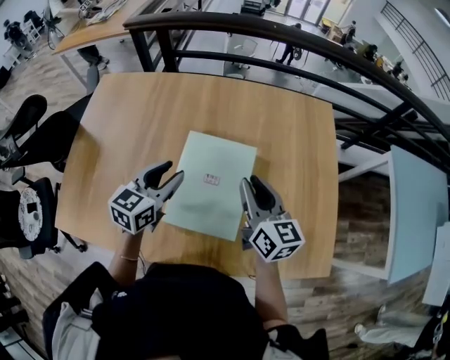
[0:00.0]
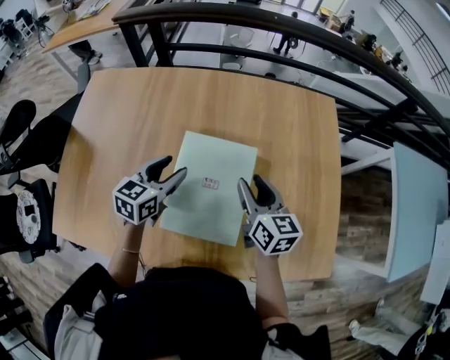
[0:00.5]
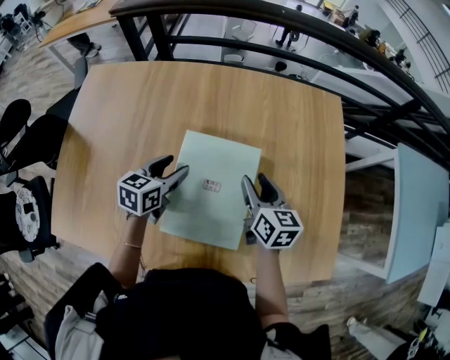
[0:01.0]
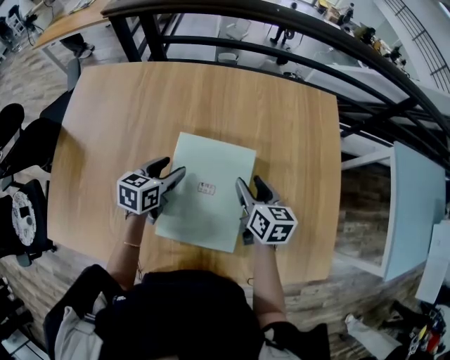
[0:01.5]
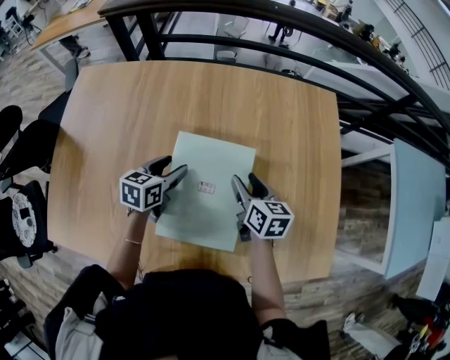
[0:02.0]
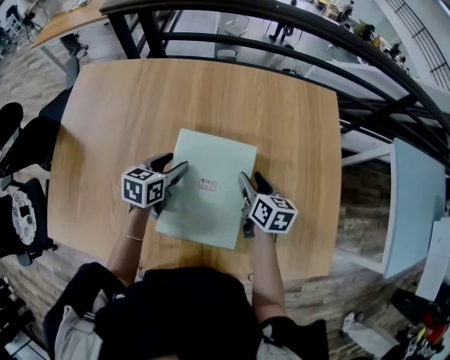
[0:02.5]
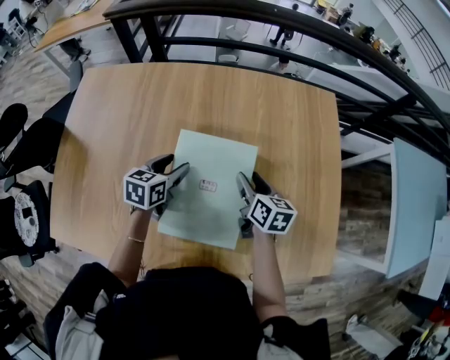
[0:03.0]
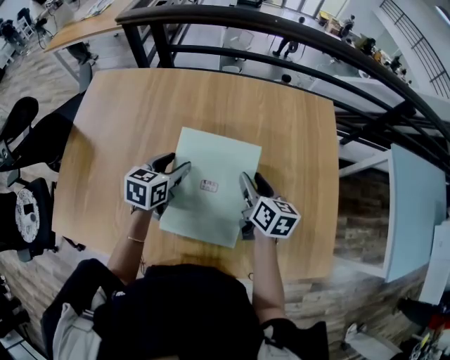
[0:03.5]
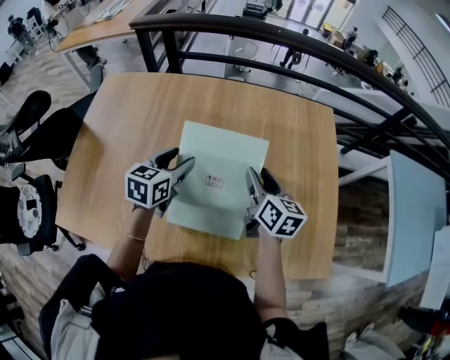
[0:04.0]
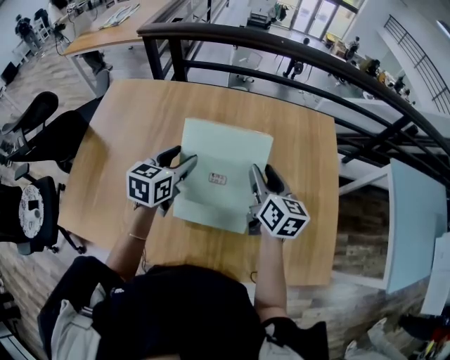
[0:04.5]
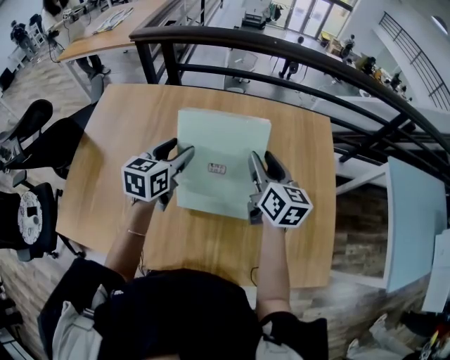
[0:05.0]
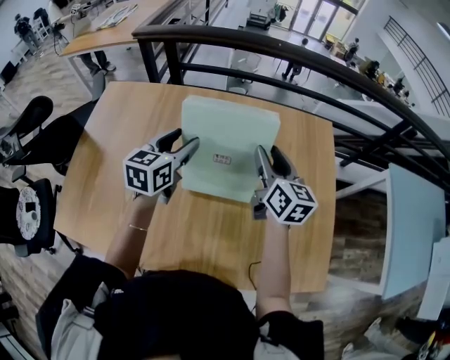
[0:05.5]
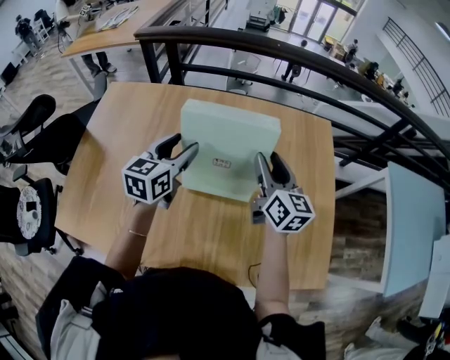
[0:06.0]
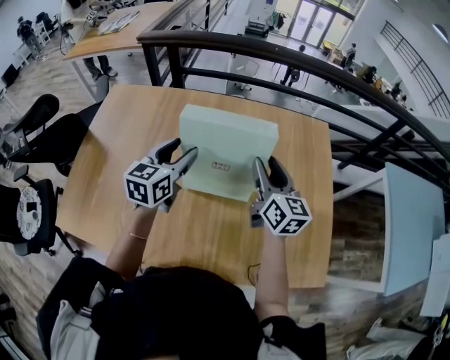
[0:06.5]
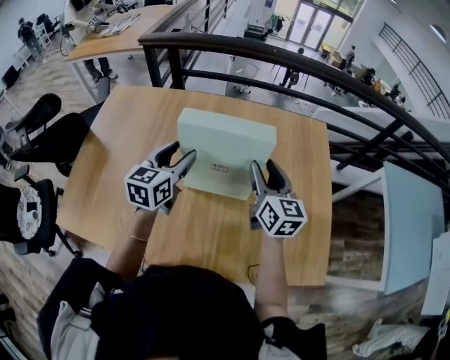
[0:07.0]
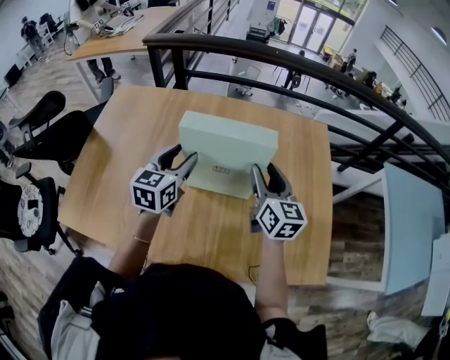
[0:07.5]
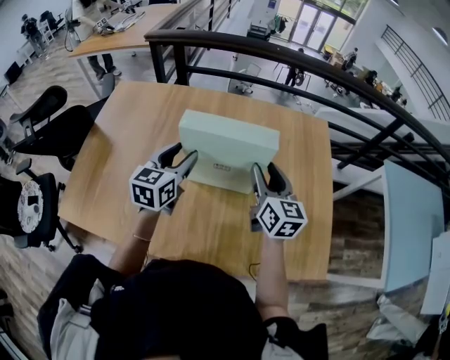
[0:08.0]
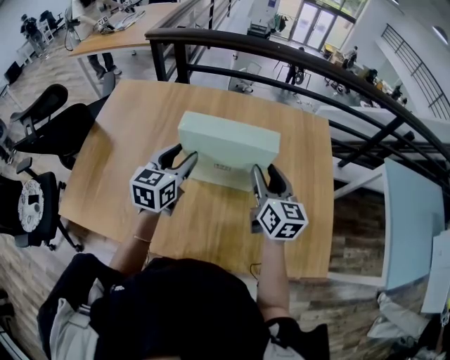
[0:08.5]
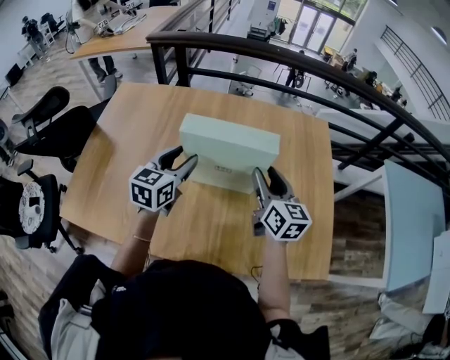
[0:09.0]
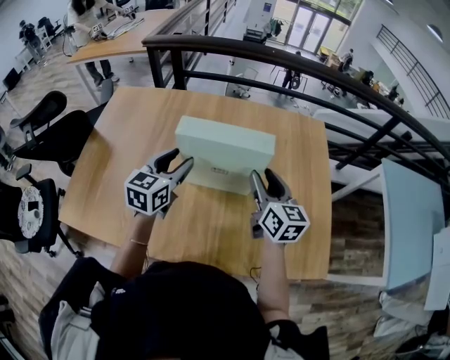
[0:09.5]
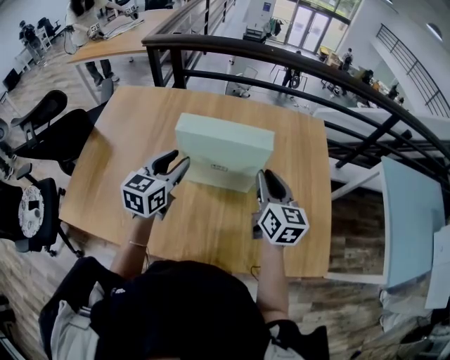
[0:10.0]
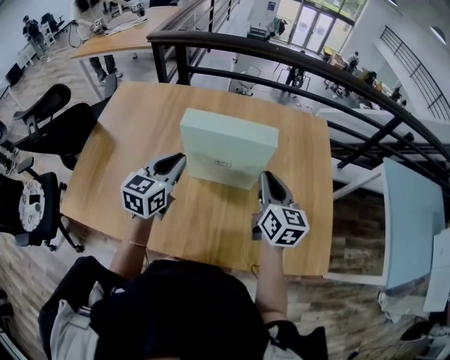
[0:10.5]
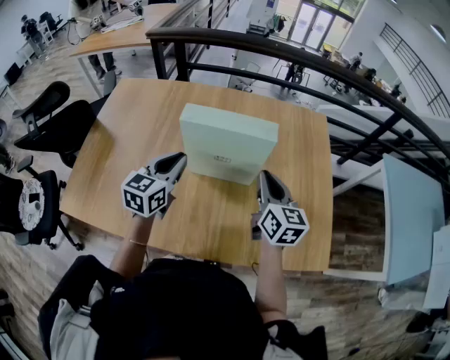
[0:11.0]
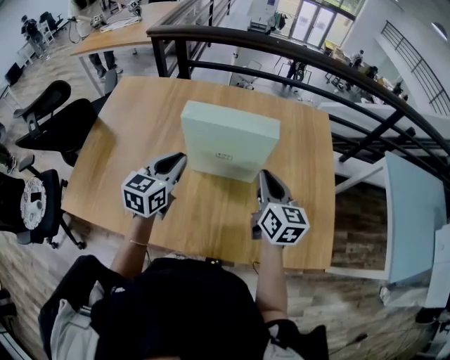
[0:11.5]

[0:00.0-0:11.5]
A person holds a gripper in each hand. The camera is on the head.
0:00.0 to 0:02.0: The grippers both shift downward and forward by roughly 15 cm. The right gripper changes its angle by approximately 20 degrees, and opens its fingers.
0:02.0 to 0:04.0: The two grippers go some 10 cm upward.
0:04.0 to 0:06.0: The two grippers go some 10 cm upward.
0:06.0 to 0:07.5: Both grippers travel together backward, approximately 5 cm.
0:07.5 to 0:09.5: The grippers stay close to where they were, moving slightly.
0:09.5 to 0:11.5: The left gripper closes. The right gripper closes up.

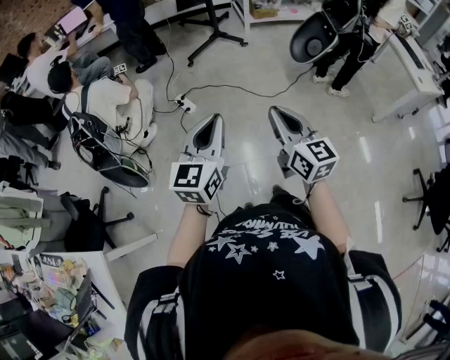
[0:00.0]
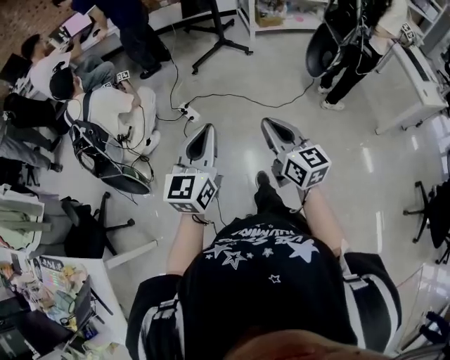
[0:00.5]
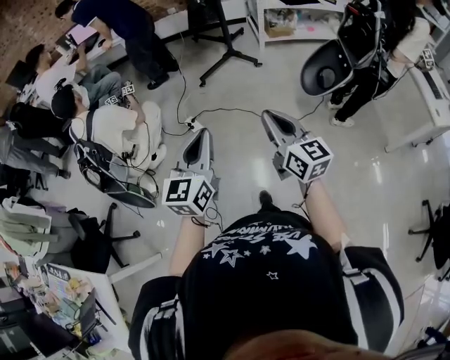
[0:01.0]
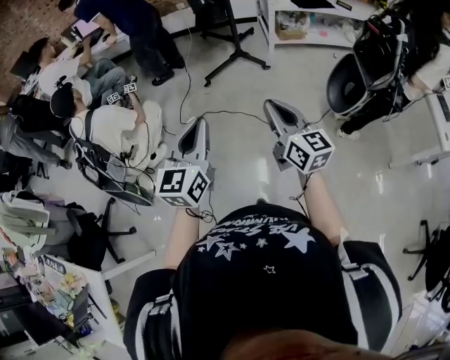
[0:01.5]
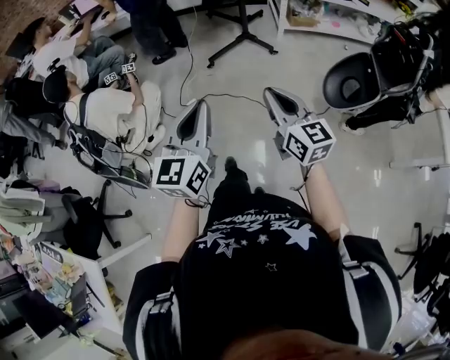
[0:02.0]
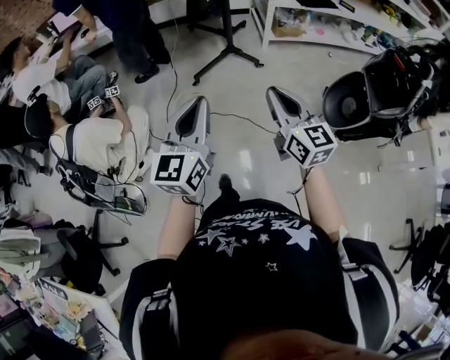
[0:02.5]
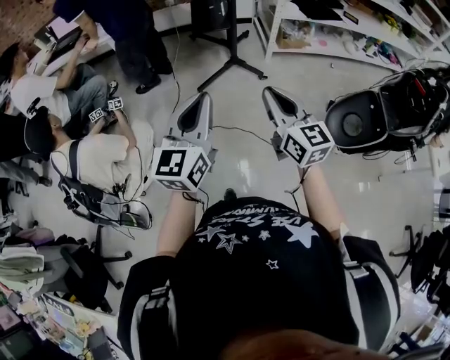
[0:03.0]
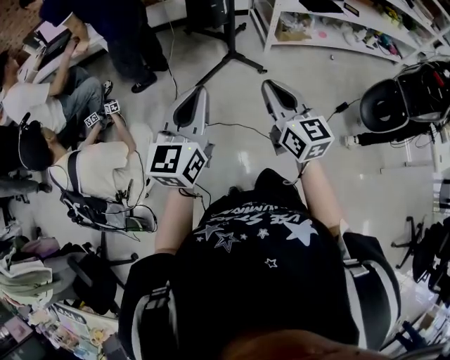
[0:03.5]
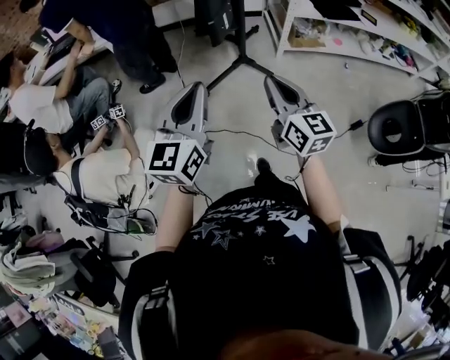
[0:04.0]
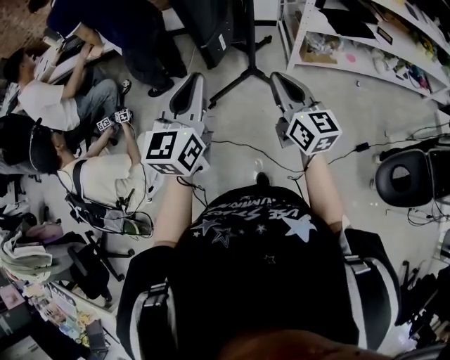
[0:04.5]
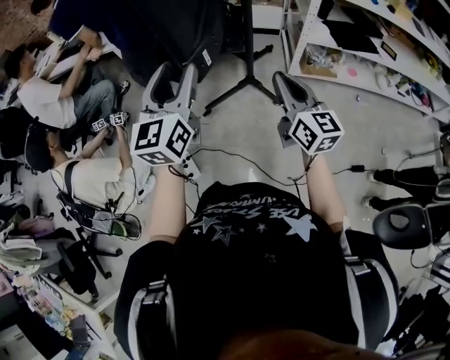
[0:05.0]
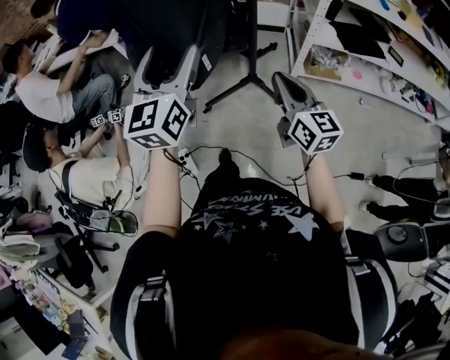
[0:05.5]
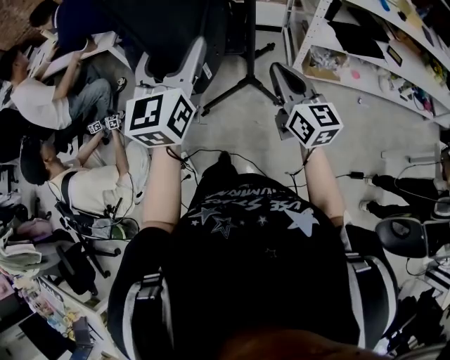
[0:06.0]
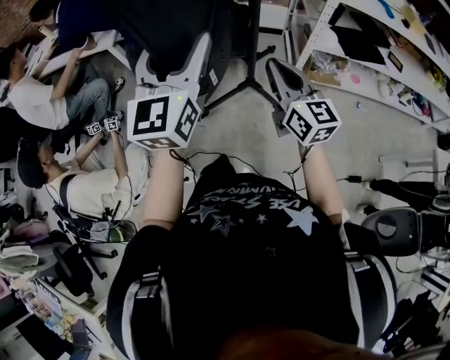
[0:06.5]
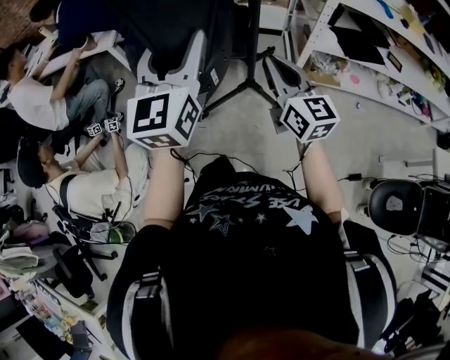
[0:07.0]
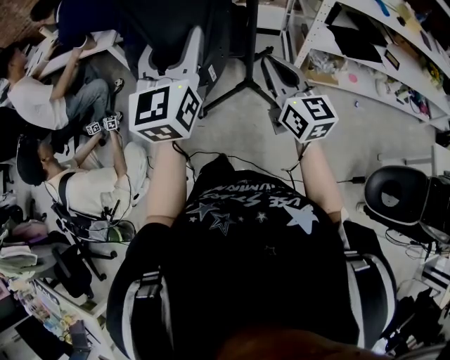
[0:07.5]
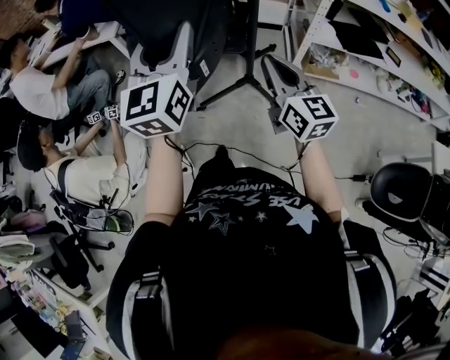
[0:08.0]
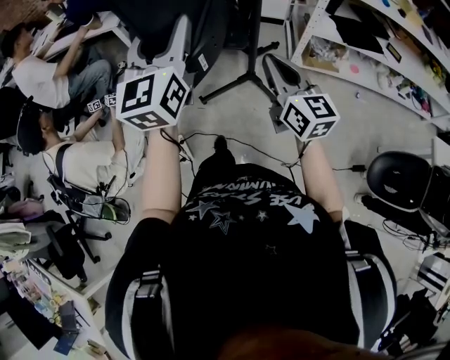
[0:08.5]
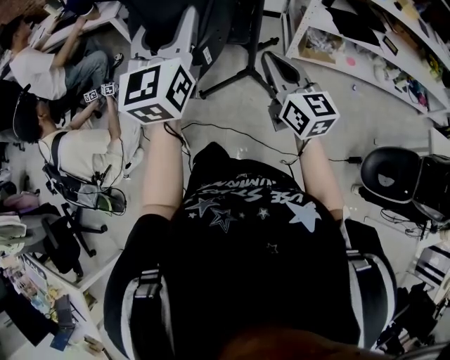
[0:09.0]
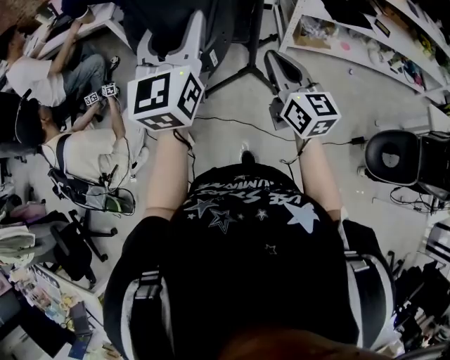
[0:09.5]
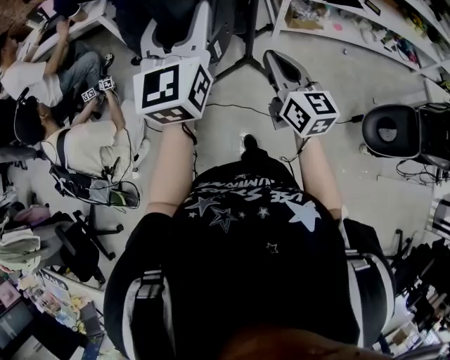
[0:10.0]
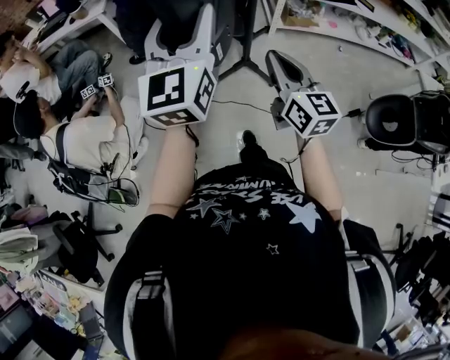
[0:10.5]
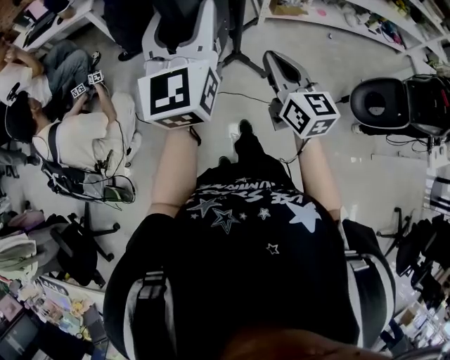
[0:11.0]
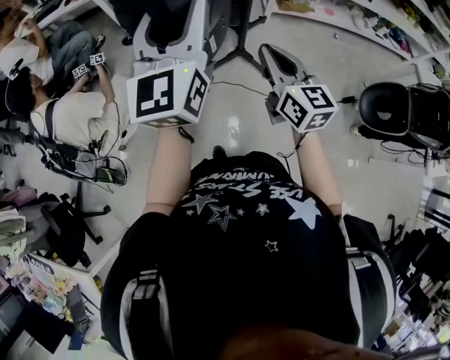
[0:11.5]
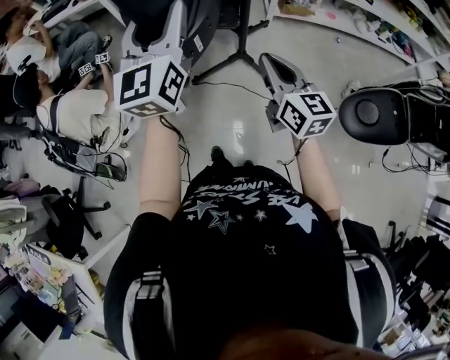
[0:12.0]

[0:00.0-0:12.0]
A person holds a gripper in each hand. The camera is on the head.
0:00.0 to 0:02.0: Both grippers move forward, some 30 cm.
0:02.0 to 0:04.0: Both grippers travel together forward, some 35 cm.
0:04.0 to 0:06.0: The left gripper heads forward, covering approximately 20 cm, and opens. The right gripper moves forward and to the right, some 20 cm.
0:06.0 to 0:08.0: There are only small adjustments of the grippers.
0:08.0 to 0:10.0: Both grippers travel together backward, roughly 20 cm.
0:10.0 to 0:12.0: Both grippers move backward, roughly 15 cm.

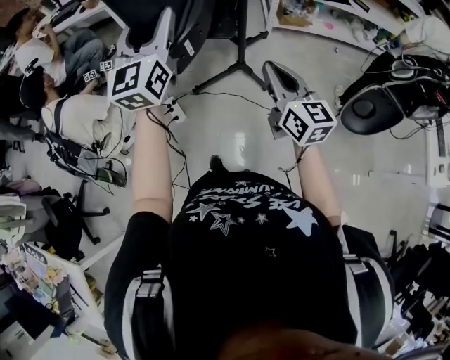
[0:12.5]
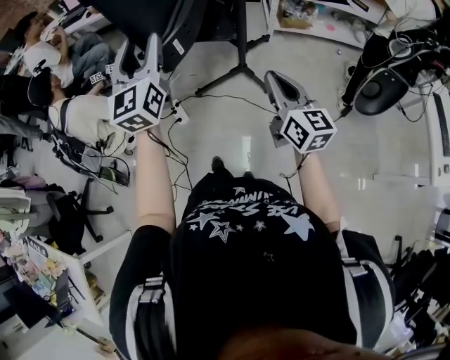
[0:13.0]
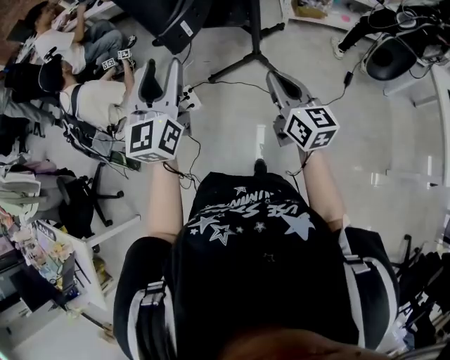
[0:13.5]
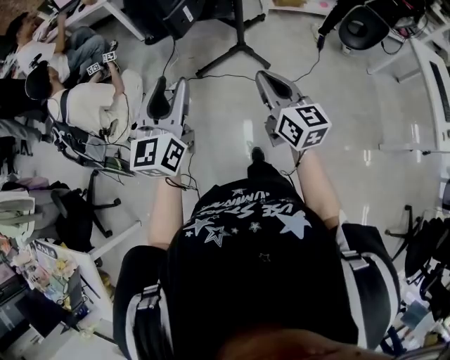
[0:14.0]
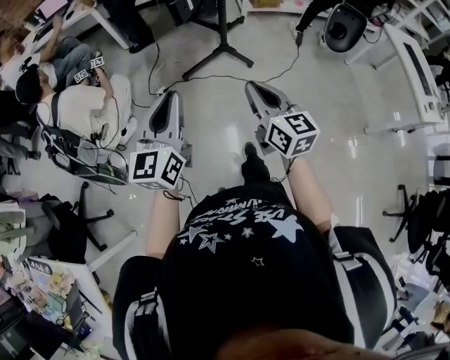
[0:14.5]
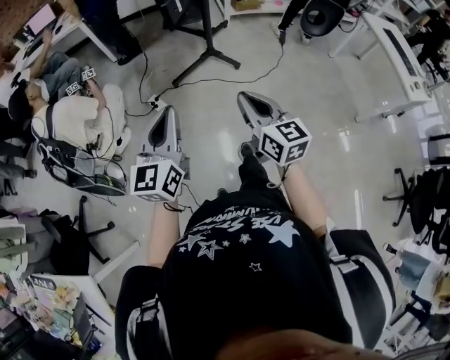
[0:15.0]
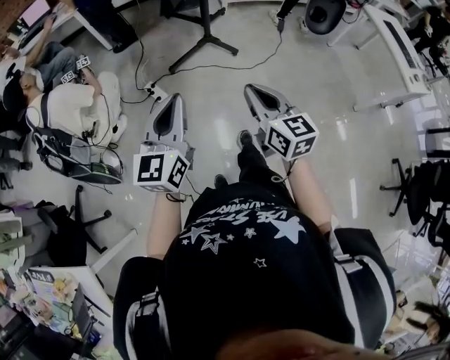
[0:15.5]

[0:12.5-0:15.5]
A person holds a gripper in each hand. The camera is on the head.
0:12.5 to 0:14.0: The left gripper shifts some 25 cm backward and downward. The right gripper heads backward and to the left, covering roughly 15 cm.
0:14.0 to 0:15.5: Both grippers travel together backward, roughly 15 cm. The left gripper closes.
